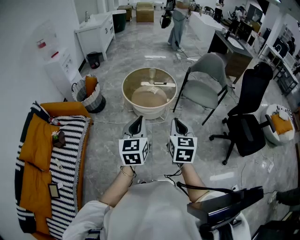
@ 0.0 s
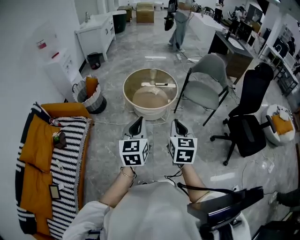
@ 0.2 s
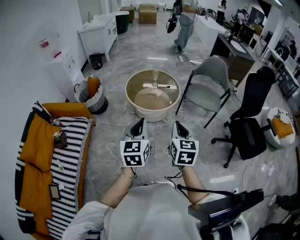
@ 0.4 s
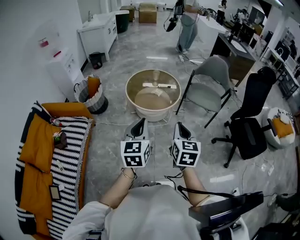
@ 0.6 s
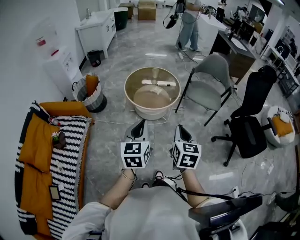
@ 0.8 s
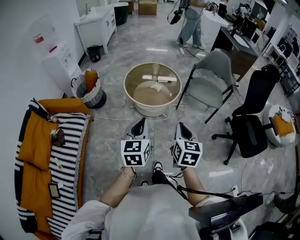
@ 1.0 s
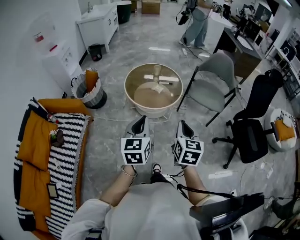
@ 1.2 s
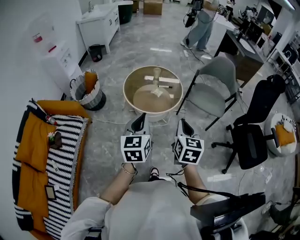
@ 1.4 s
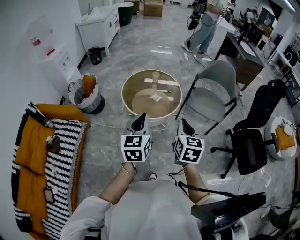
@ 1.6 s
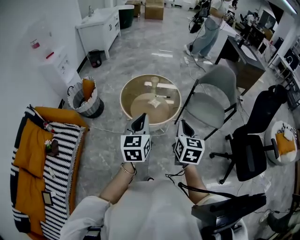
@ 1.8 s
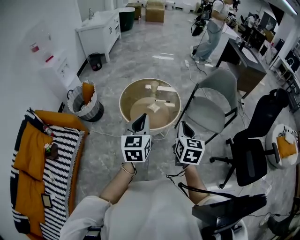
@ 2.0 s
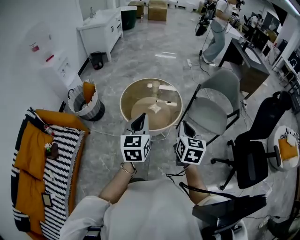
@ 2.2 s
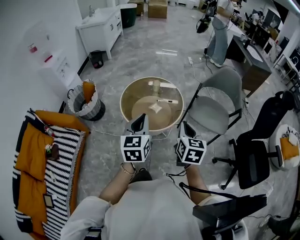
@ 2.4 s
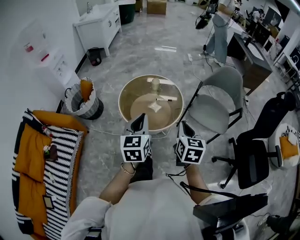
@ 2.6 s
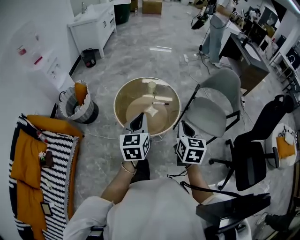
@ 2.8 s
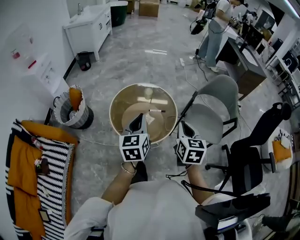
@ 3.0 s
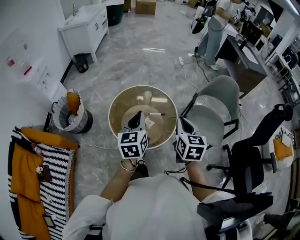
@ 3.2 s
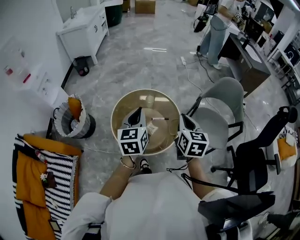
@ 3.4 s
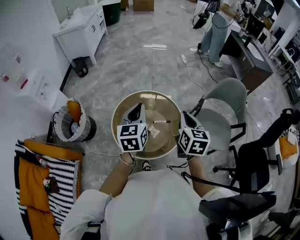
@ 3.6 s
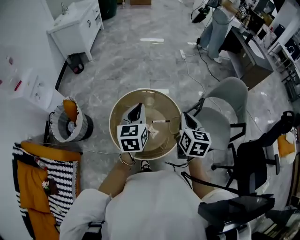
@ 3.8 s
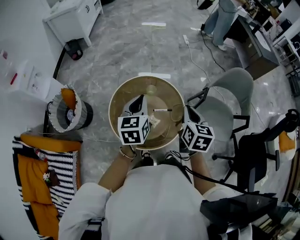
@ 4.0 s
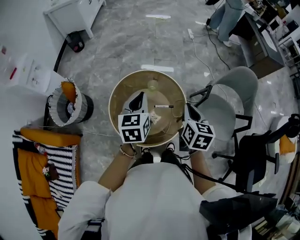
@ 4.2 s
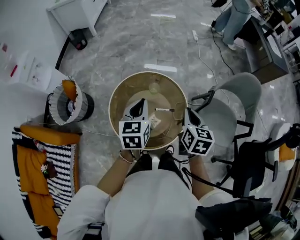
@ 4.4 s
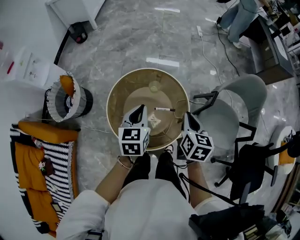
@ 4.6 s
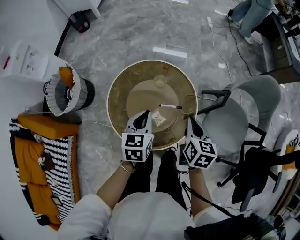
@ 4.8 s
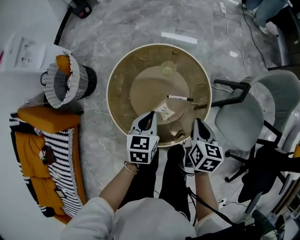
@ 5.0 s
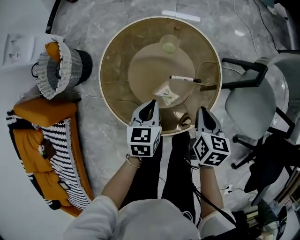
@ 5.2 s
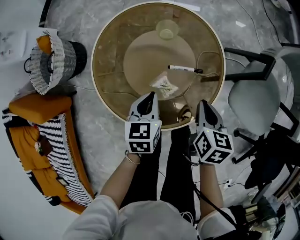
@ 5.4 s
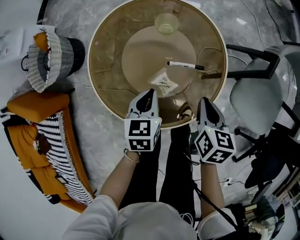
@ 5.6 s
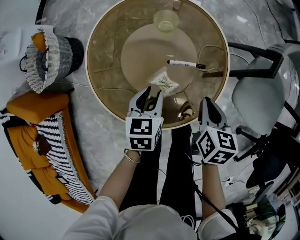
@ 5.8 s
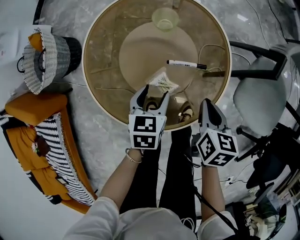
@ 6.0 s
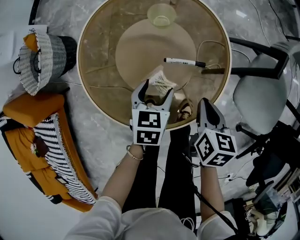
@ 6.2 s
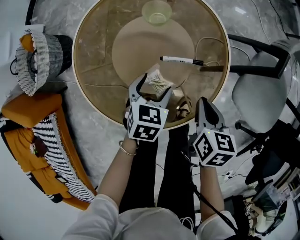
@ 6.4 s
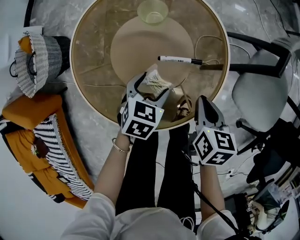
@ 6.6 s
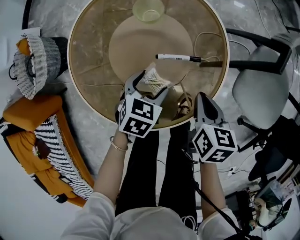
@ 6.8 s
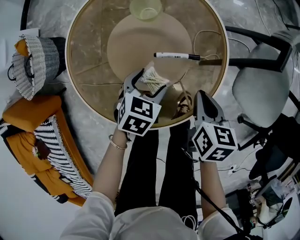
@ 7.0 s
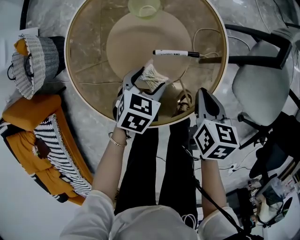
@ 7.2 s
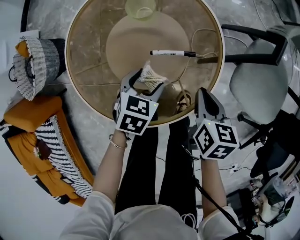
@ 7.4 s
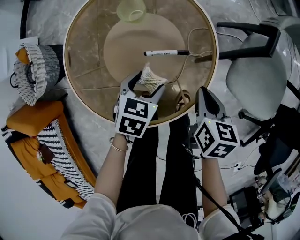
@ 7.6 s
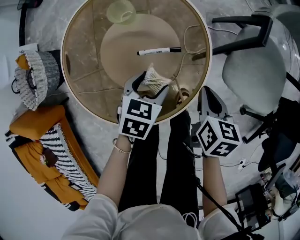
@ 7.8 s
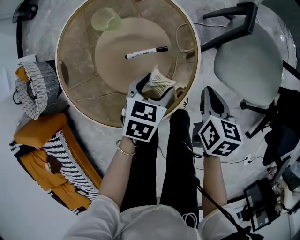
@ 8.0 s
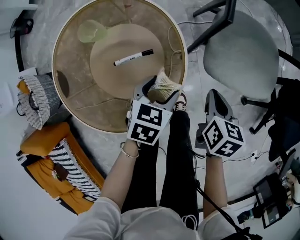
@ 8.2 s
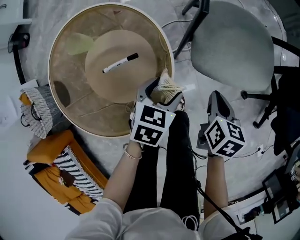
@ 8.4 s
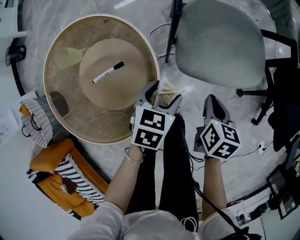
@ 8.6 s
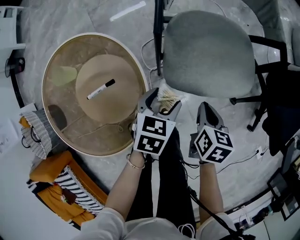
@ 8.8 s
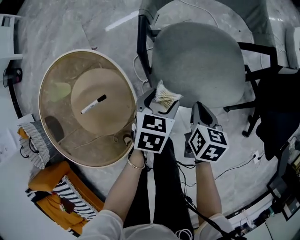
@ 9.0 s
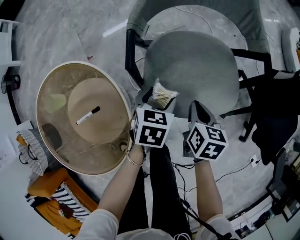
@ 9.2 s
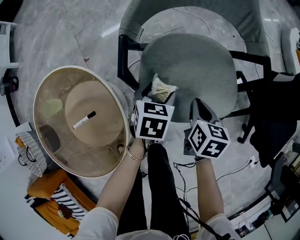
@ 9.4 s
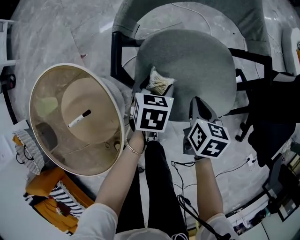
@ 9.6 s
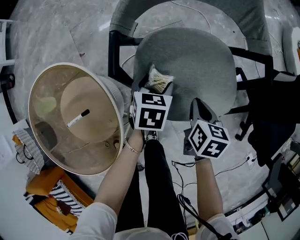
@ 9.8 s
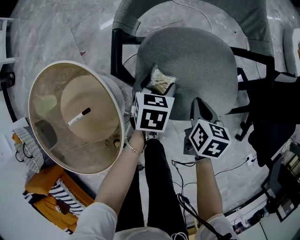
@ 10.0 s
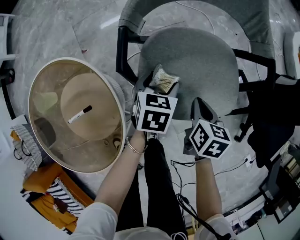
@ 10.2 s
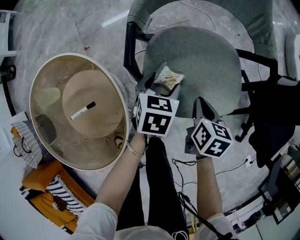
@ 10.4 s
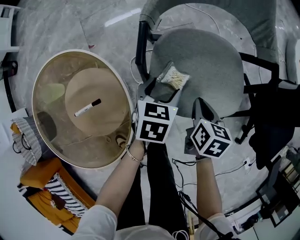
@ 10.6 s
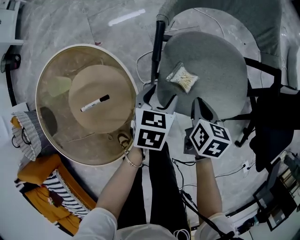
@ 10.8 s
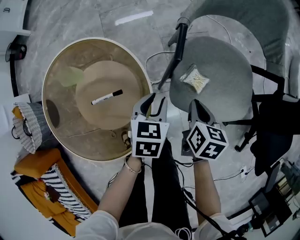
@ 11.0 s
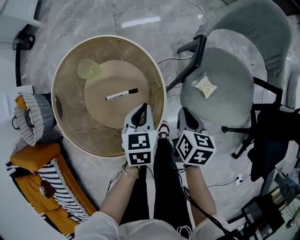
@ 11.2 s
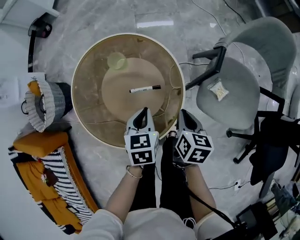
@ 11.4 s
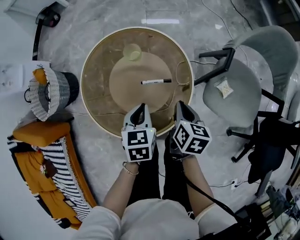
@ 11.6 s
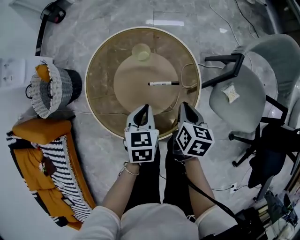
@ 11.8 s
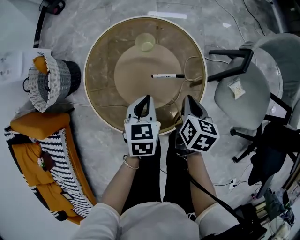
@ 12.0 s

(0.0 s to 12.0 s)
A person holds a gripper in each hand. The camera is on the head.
0.0 s - 1.6 s: Both grippers move forward, roughly 20 cm.
1.6 s - 3.0 s: The grippers both shift forward by some 25 cm.
3.0 s - 4.4 s: The two grippers go some 25 cm forward.
4.4 s - 6.0 s: The two grippers go approximately 35 cm downward. The left gripper turns by approximately 30 degrees, and opens up.
6.0 s - 7.6 s: The left gripper changes place by roughly 5 cm, and swivels about 20 degrees.
7.6 s - 9.0 s: The left gripper moves about 35 cm. The right gripper shifts by some 30 cm, and rotates some 30 degrees.
9.0 s - 10.4 s: Both grippers move forward, about 10 cm.
10.4 s - 12.0 s: The left gripper moves approximately 50 cm, rotates about 40 degrees, and closes its fingers, while the right gripper ends up some 40 cm from where it was, and rotates roughly 20 degrees.

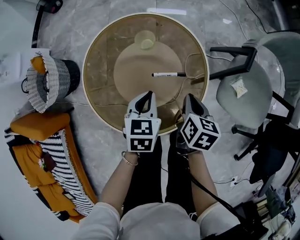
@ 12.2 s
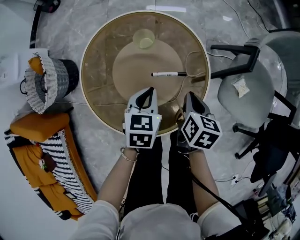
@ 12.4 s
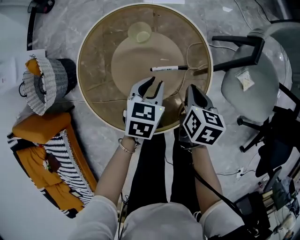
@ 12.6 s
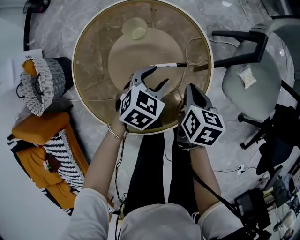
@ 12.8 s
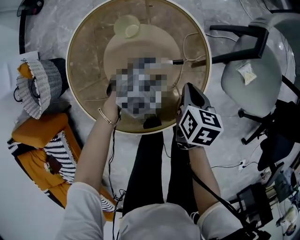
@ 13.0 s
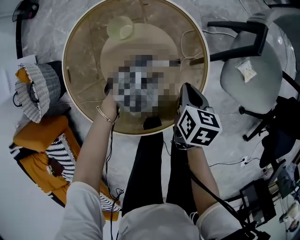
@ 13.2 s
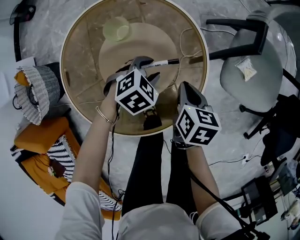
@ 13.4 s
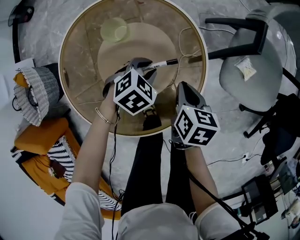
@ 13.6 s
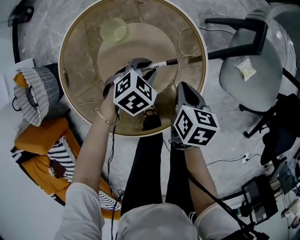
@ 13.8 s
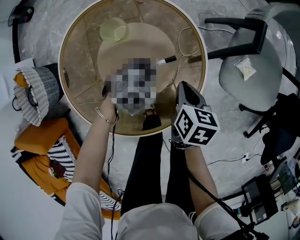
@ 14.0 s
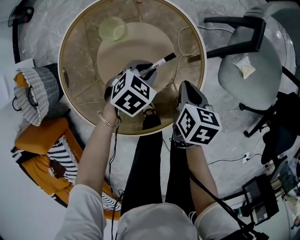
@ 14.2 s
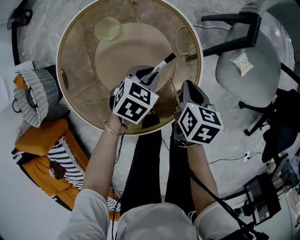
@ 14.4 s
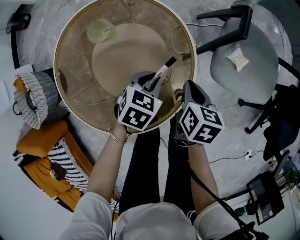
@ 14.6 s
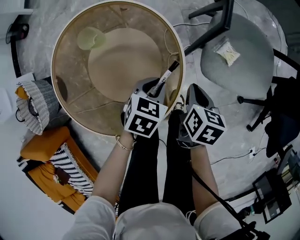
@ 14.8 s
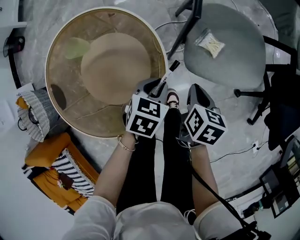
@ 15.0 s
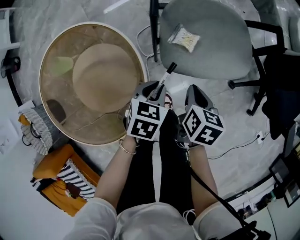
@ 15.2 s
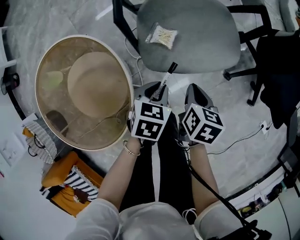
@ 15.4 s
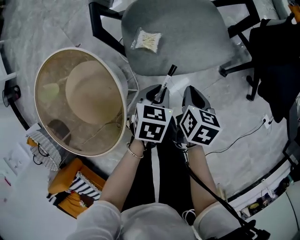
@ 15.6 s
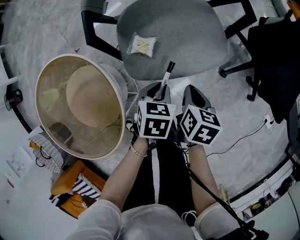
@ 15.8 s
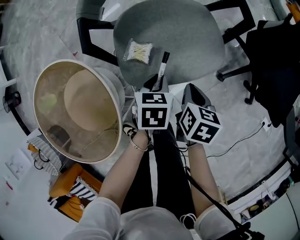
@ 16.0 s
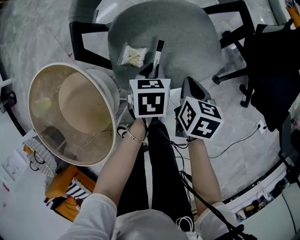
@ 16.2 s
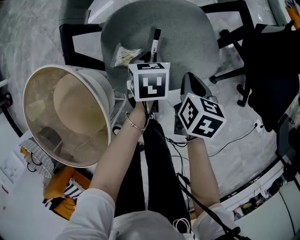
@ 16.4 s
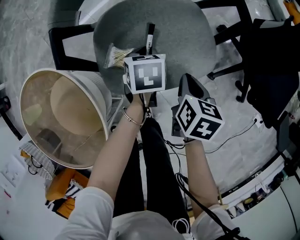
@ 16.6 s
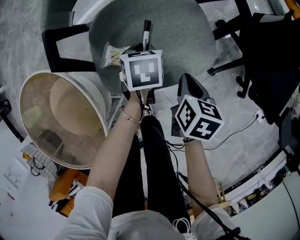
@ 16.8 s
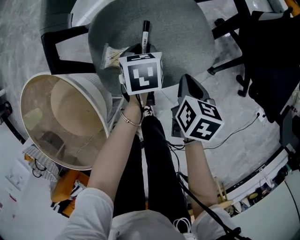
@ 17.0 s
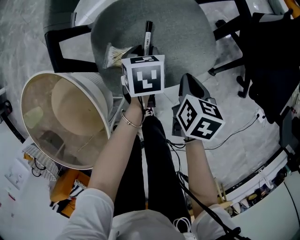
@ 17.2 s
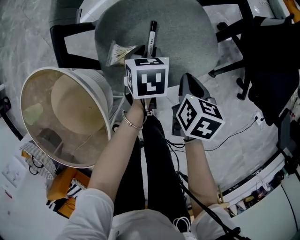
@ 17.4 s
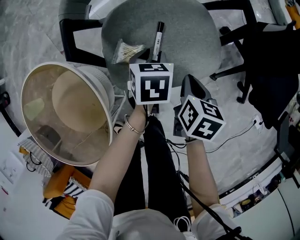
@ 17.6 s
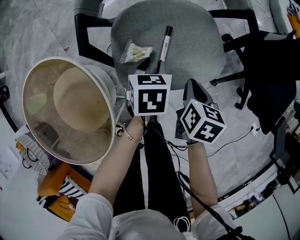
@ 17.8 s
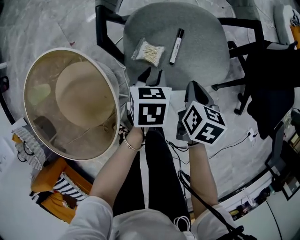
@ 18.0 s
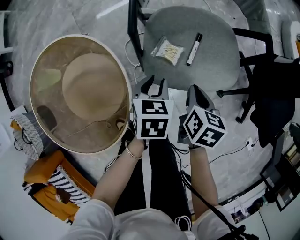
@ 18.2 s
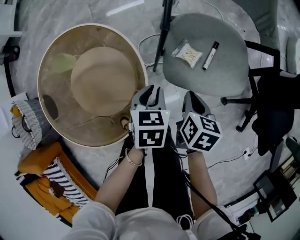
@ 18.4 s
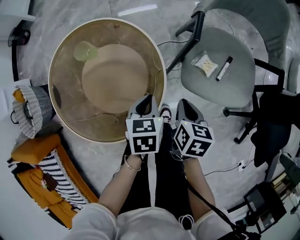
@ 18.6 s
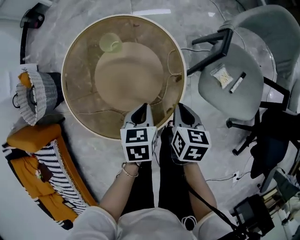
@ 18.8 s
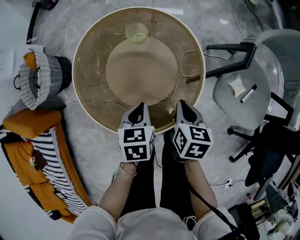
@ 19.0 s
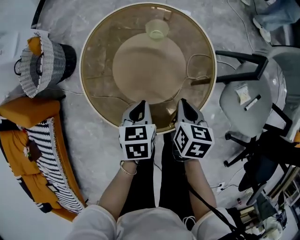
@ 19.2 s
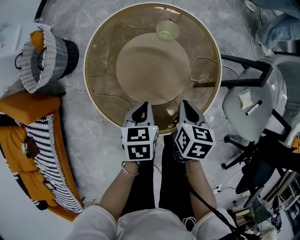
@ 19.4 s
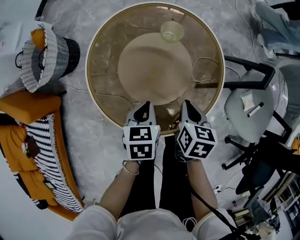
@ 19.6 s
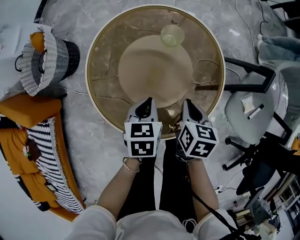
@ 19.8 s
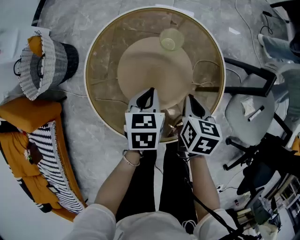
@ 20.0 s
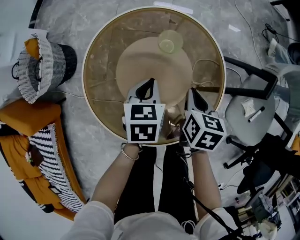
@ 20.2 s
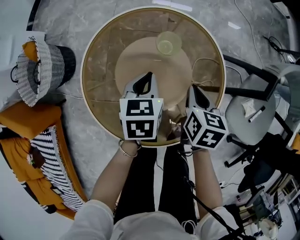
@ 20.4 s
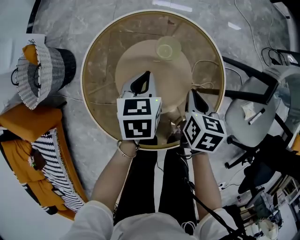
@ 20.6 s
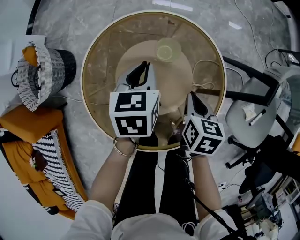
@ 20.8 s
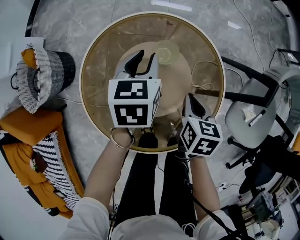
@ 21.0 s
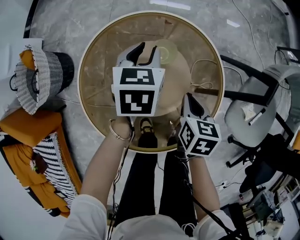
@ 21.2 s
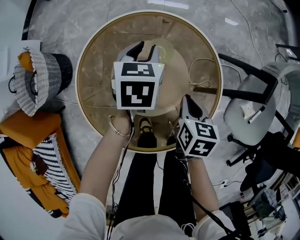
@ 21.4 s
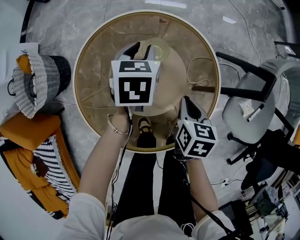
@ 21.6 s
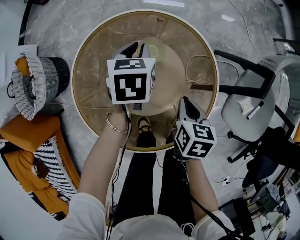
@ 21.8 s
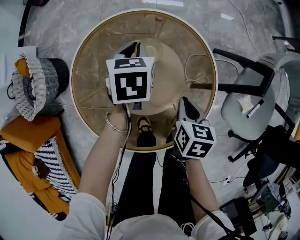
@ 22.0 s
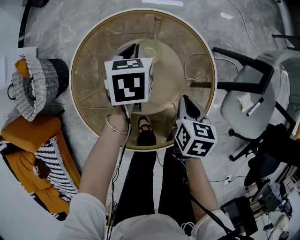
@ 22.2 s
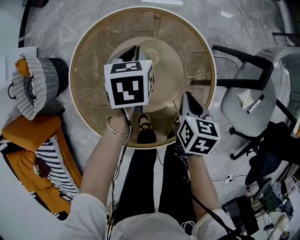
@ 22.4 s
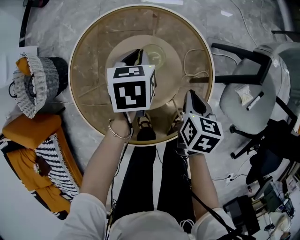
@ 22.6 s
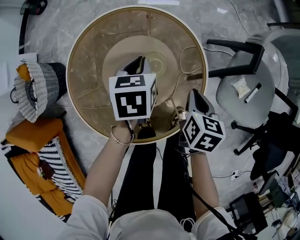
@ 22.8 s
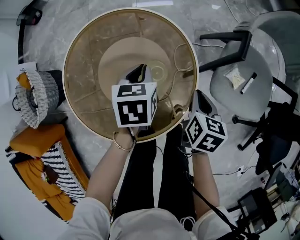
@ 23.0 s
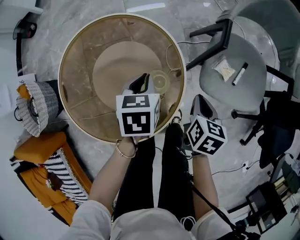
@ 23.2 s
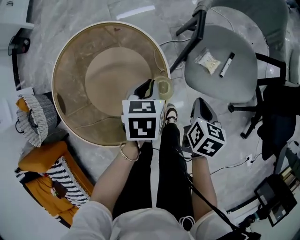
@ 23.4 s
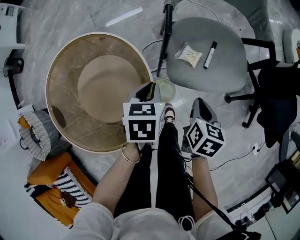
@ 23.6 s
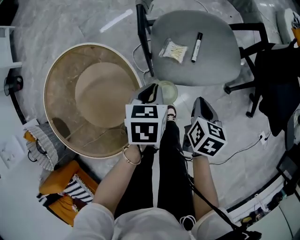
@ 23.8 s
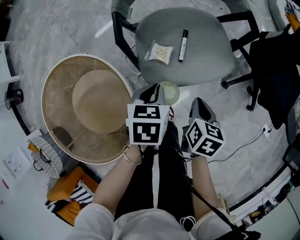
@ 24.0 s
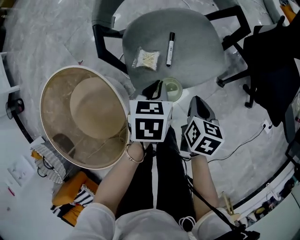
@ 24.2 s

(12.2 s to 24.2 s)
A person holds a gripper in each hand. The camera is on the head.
12.2 s - 13.8 s: The left gripper goes some 15 cm downward, twists about 40 degrees clockwise, seen from behind, and opens, then closes again; the right gripper goes approximately 5 cm downward.
13.8 s - 15.2 s: The two grippers go roughly 25 cm to the right. The right gripper changes its angle by some 20 degrees.
15.2 s - 16.6 s: The left gripper heads forward and to the right, covering approximately 25 cm, while the right gripper moves to the right and forward, about 20 cm.
16.6 s - 18.2 s: The left gripper shifts about 20 cm backward, to the left and upward. The right gripper moves to the left, approximately 10 cm.
18.2 s - 19.8 s: The two grippers travel together, approximately 40 cm. The left gripper turns by about 40 degrees. Meanwhile the right gripper changes its angle by some 40 degrees.
19.8 s - 21.2 s: The right gripper moves forward, approximately 10 cm. The left gripper shifts approximately 25 cm forward.
21.2 s - 22.6 s: The right gripper travels to the right by some 5 cm, while the left gripper ends up approximately 5 cm from where it was.
22.6 s - 24.2 s: Both grippers are carried approximately 50 cm. The left gripper rotates about 50 degrees; the right gripper rotates approximately 40 degrees.
